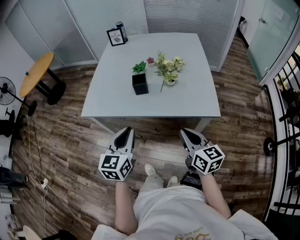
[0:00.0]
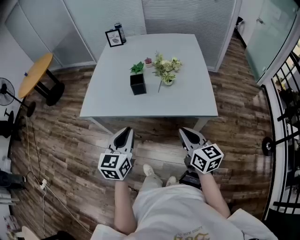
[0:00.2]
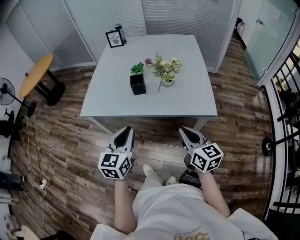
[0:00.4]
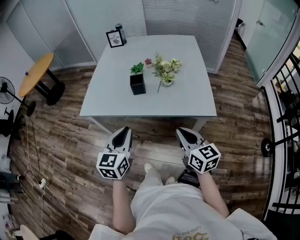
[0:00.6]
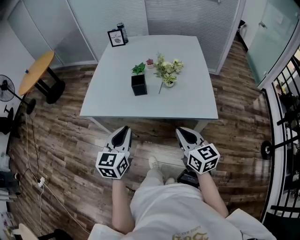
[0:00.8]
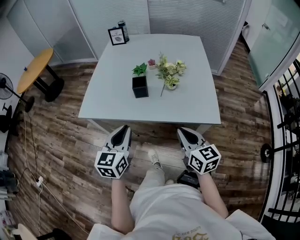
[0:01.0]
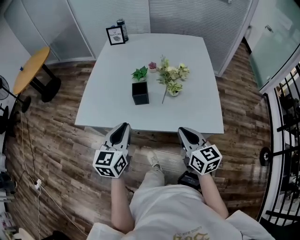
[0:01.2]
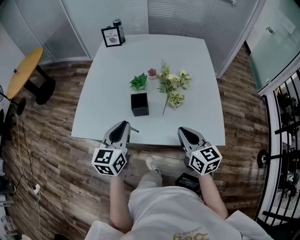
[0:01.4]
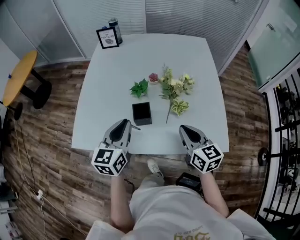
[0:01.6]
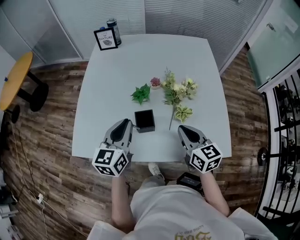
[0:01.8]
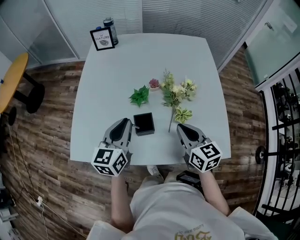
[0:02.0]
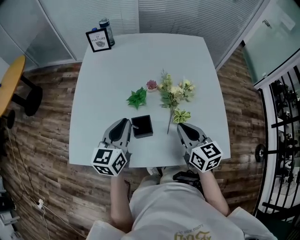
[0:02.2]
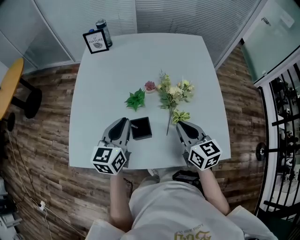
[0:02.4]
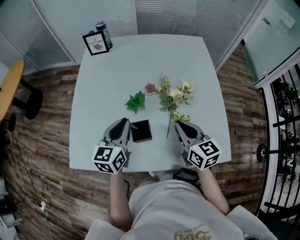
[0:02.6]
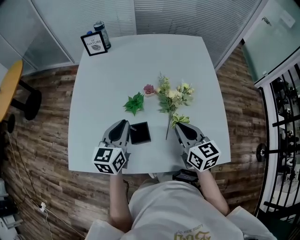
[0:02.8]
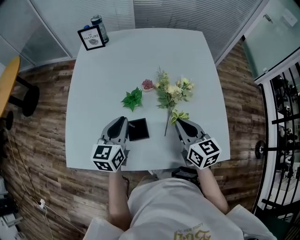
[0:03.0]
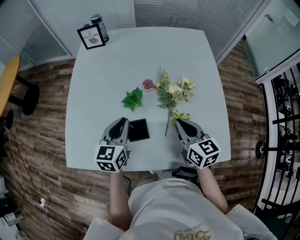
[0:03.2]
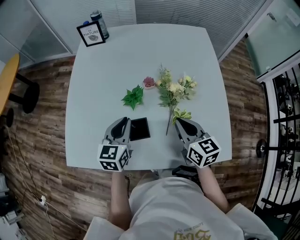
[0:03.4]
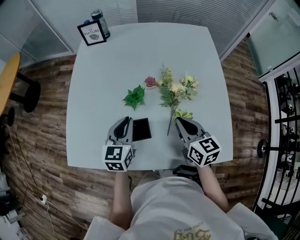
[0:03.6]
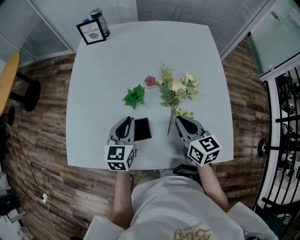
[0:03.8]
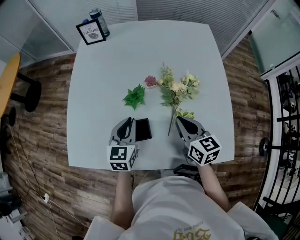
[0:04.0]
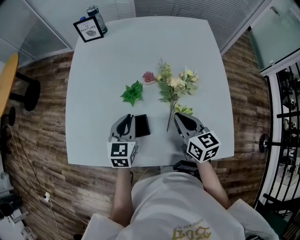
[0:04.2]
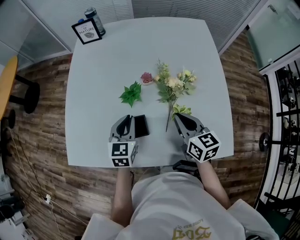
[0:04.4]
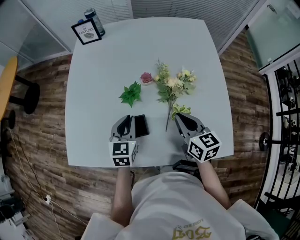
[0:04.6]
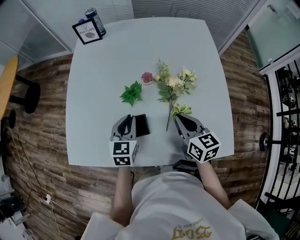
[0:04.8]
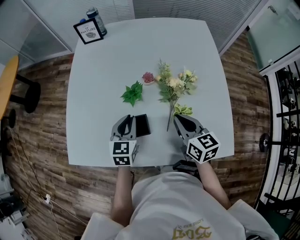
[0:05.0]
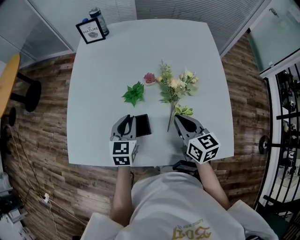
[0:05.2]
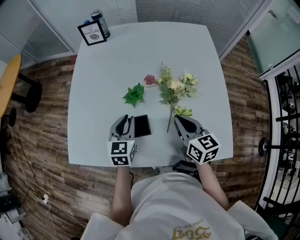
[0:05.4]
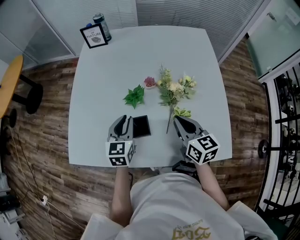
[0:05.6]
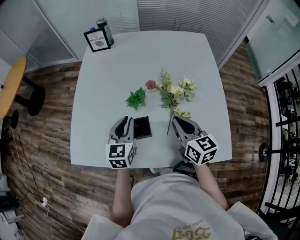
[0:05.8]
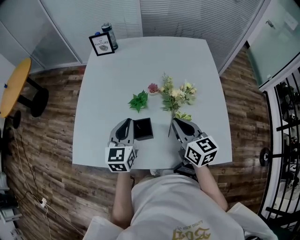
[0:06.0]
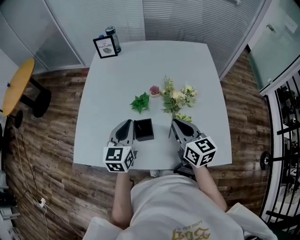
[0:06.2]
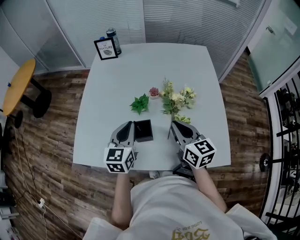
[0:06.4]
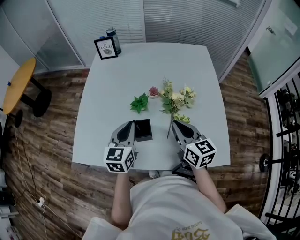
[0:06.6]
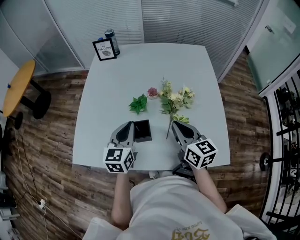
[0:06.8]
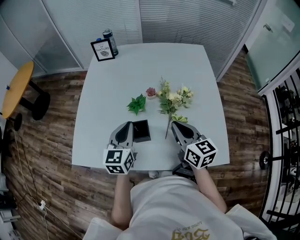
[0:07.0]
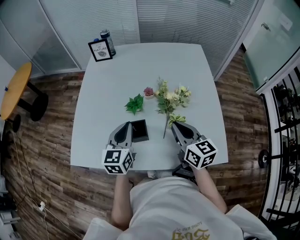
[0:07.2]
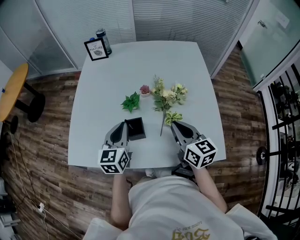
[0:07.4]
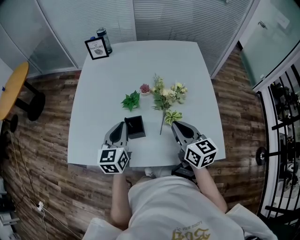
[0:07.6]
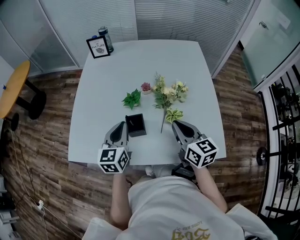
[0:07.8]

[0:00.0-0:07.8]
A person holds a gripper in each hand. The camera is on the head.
0.0 to 1.6 s: Both grippers travel together forward, approximately 30 cm.
1.6 to 3.2 s: The left gripper travels forward and downward by approximately 15 cm. Meanwhile the right gripper heads forward, covering some 10 cm.
3.2 to 4.6 s: The left gripper shifts some 5 cm downward.
4.6 to 6.2 s: The grippers both shift upward by some 10 cm.
6.2 to 7.8 s: The right gripper changes place by about 5 cm.

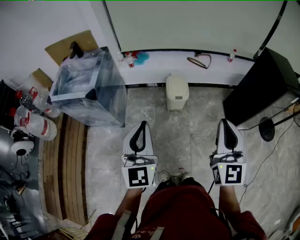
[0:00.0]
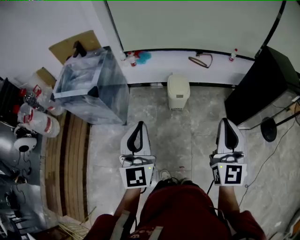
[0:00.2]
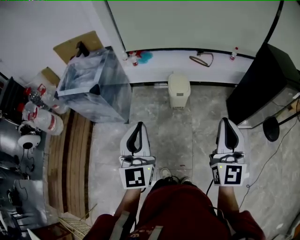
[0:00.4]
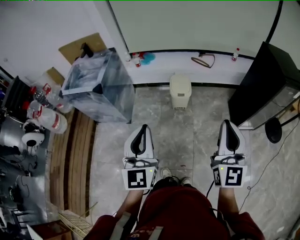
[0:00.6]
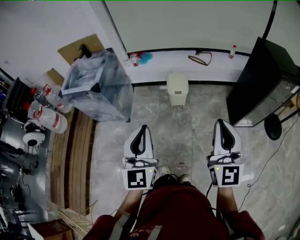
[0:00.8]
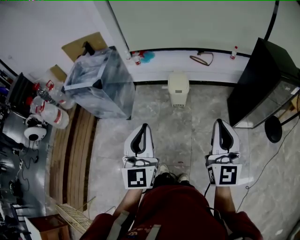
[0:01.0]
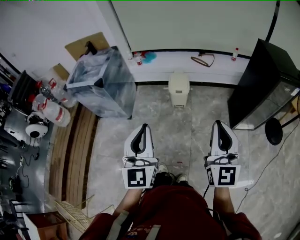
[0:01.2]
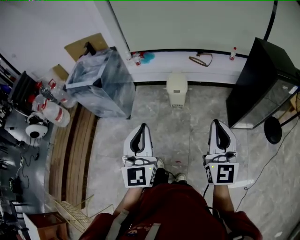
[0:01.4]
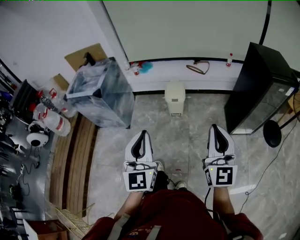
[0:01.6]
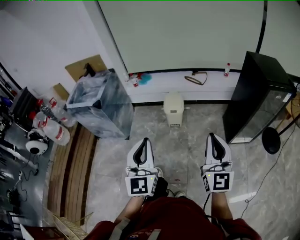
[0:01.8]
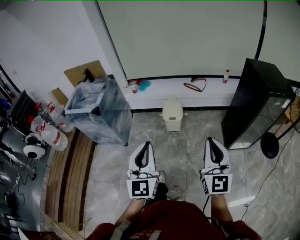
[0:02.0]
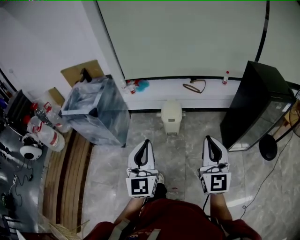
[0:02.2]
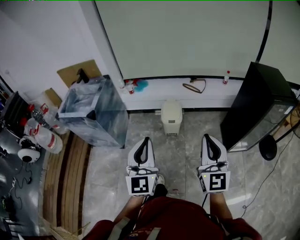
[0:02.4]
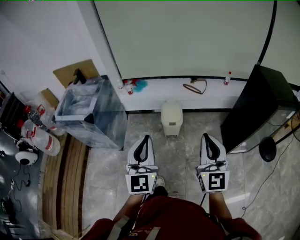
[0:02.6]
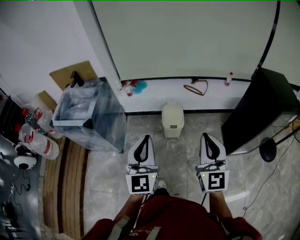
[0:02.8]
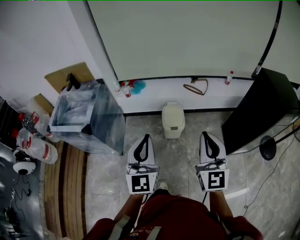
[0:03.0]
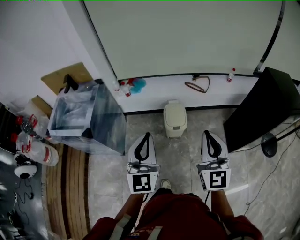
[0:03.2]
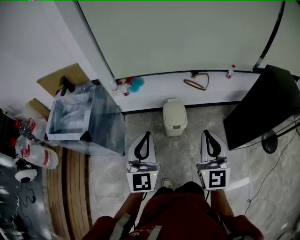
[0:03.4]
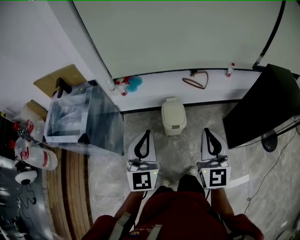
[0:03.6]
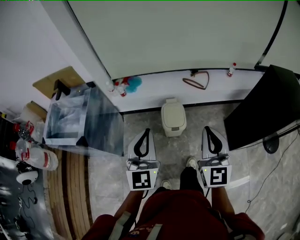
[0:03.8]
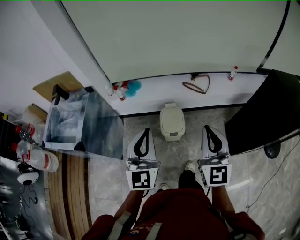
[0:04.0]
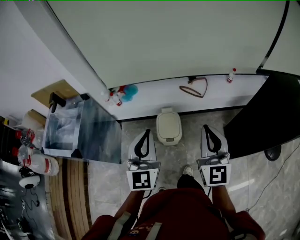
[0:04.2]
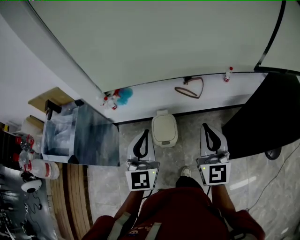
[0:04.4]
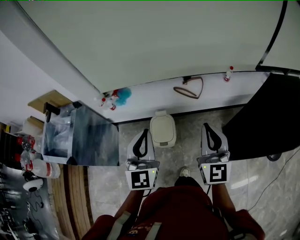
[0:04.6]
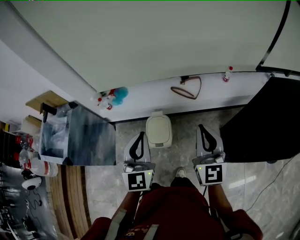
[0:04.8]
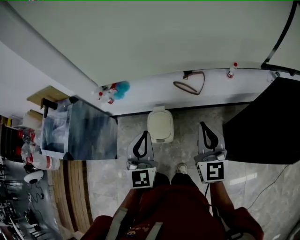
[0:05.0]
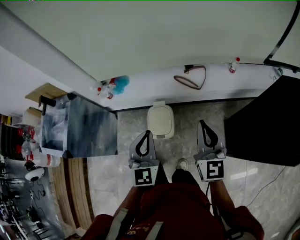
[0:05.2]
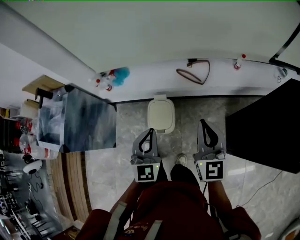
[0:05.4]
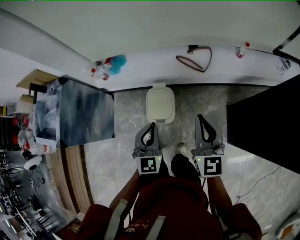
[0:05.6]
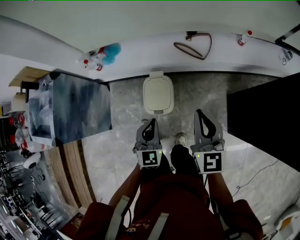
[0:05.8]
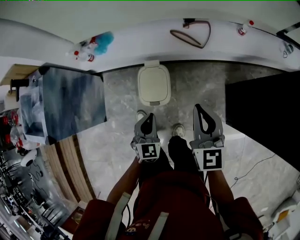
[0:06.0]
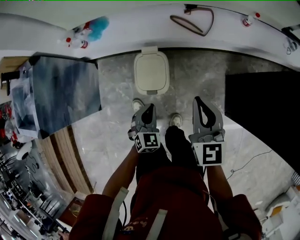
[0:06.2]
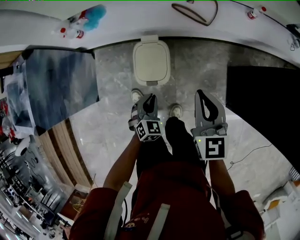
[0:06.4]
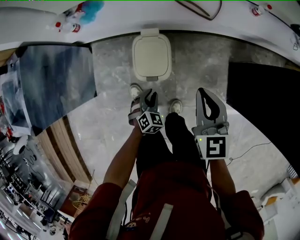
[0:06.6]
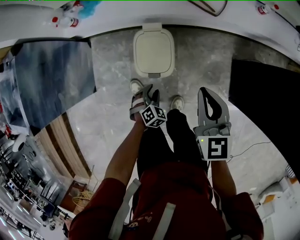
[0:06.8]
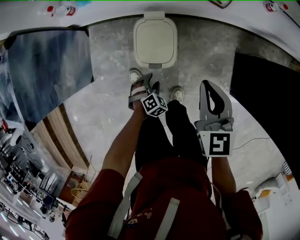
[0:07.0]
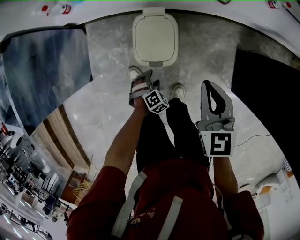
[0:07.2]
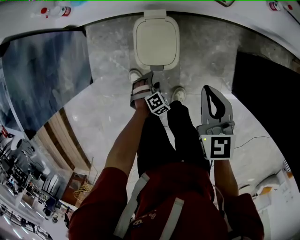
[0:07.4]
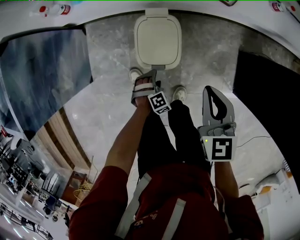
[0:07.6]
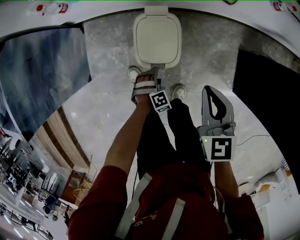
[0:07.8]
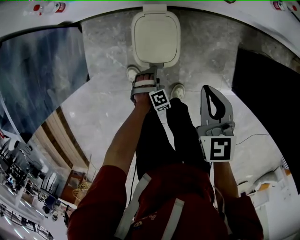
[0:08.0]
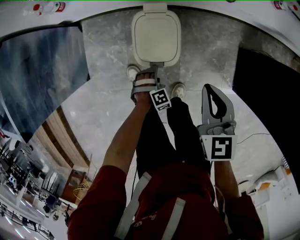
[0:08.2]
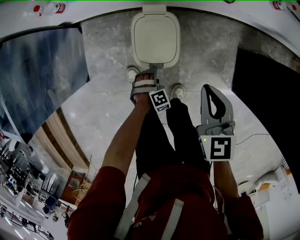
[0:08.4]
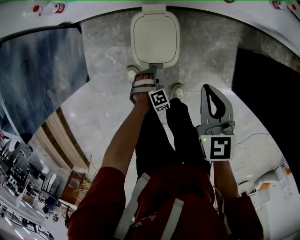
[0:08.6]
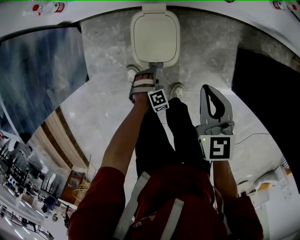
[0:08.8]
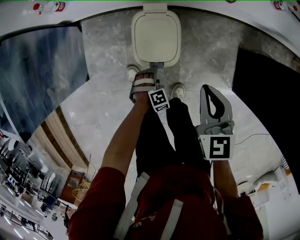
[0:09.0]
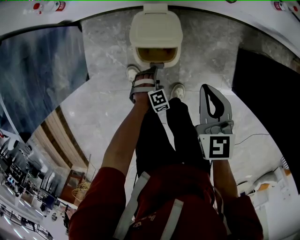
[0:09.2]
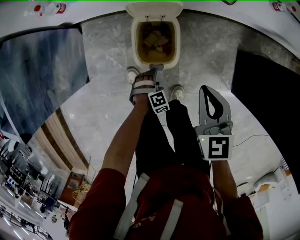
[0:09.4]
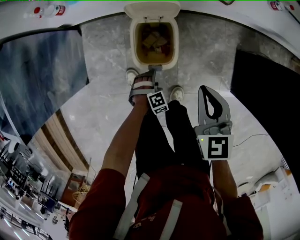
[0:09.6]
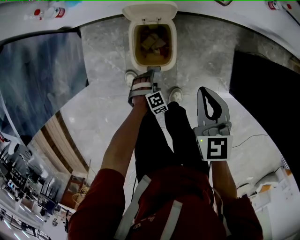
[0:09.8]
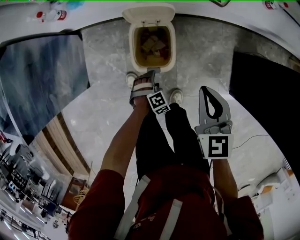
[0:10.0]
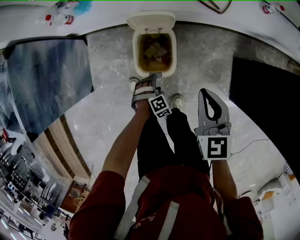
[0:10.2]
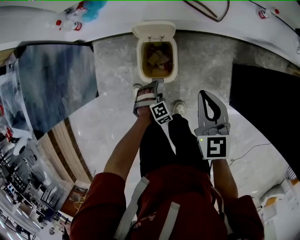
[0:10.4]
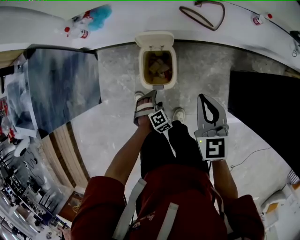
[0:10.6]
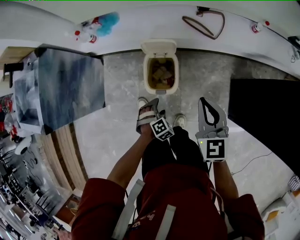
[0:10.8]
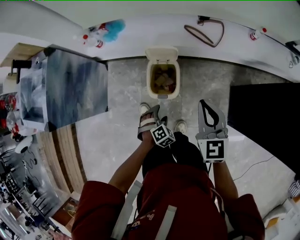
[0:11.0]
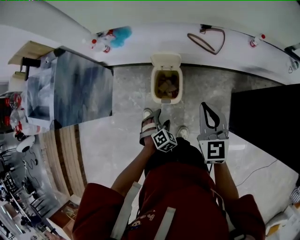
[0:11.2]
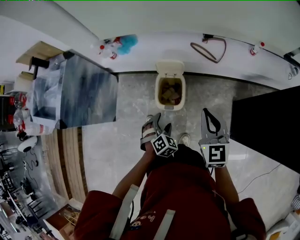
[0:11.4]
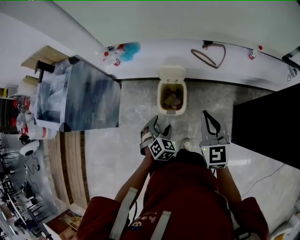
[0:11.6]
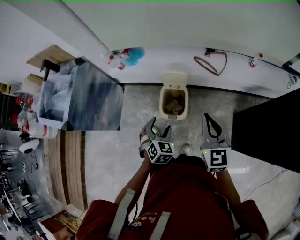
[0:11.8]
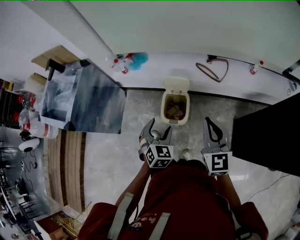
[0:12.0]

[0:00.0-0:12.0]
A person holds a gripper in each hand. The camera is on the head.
0.0 to 1.6 s: Both grippers travel together backward and to the right, approximately 20 cm.
1.6 to 3.0 s: The right gripper goes some 30 cm forward and to the left. The left gripper goes about 30 cm forward.
3.0 to 4.4 s: Both grippers travel together forward and to the right, roughly 30 cm.
4.4 to 6.0 s: The left gripper heads downward, covering roughly 35 cm, and angles its fingers downward, by roughly 30 degrees; the right gripper goes about 25 cm downward and forward, and changes its angle by approximately 20 degrees.
6.0 to 7.6 s: The right gripper moves downward, about 20 cm. Meanwhile the left gripper moves downward, some 35 cm, points its fingers approximately 40 degrees further downward, and opens.
7.6 to 9.0 s: The grippers make only small movements.
9.0 to 10.4 s: The grippers both shift upward by some 10 cm.
10.4 to 12.0 s: The left gripper heads upward, covering approximately 35 cm, and angles its fingers upward, by some 30 degrees. Meanwhile the right gripper moves upward, some 20 cm.

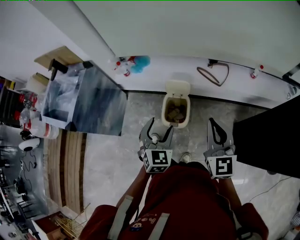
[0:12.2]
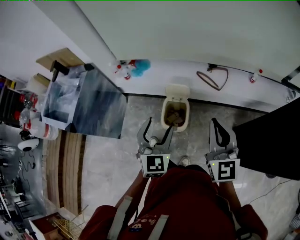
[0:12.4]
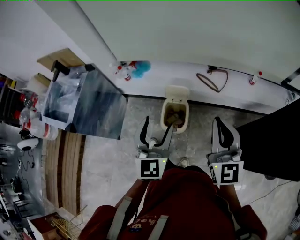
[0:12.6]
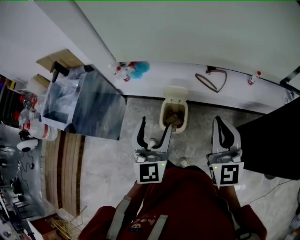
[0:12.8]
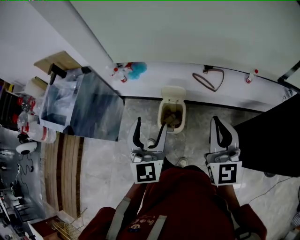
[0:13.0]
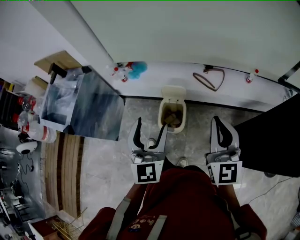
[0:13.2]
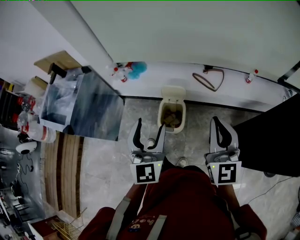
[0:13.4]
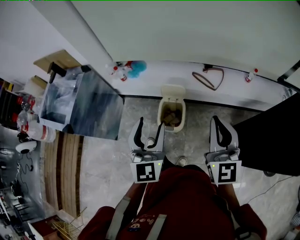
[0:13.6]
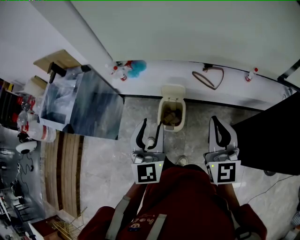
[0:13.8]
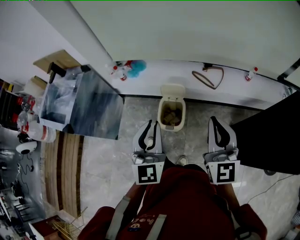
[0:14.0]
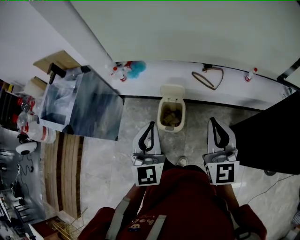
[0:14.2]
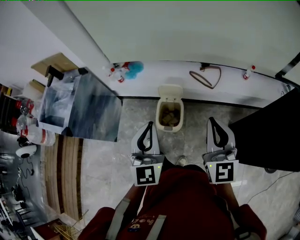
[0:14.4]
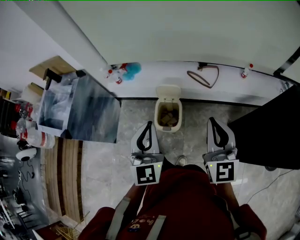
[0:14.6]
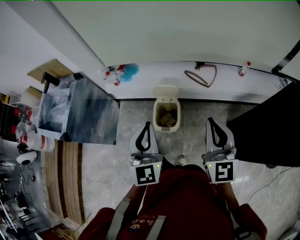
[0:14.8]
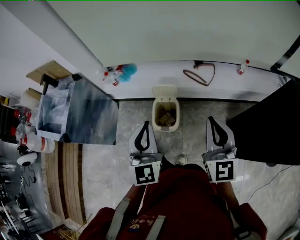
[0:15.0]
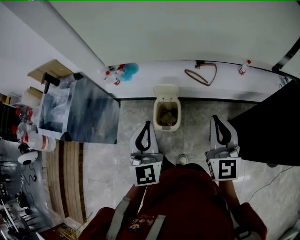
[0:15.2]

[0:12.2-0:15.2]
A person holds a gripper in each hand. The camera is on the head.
12.2 to 13.8 s: The left gripper moves upward, roughly 15 cm, swivels some 30 degrees, and closes its fingers; the right gripper is displaced upward by about 10 cm.
13.8 to 15.2 s: The left gripper closes its fingers.

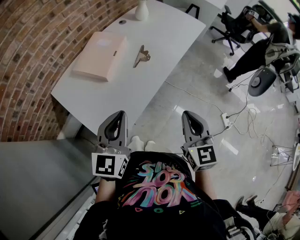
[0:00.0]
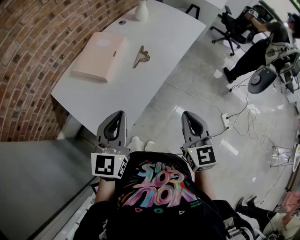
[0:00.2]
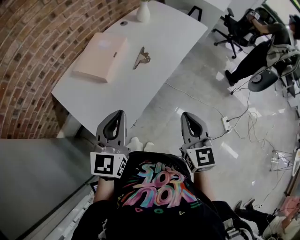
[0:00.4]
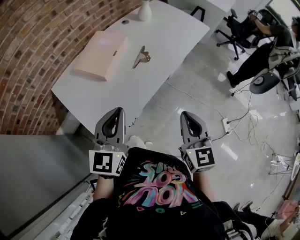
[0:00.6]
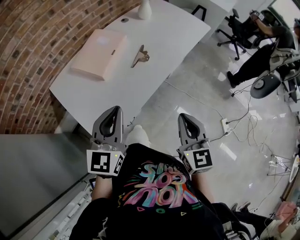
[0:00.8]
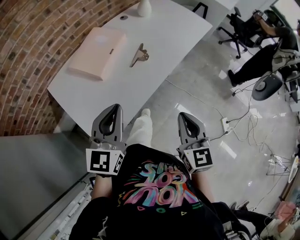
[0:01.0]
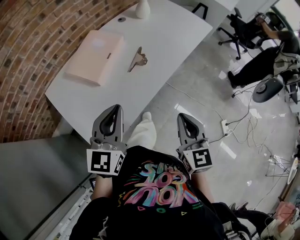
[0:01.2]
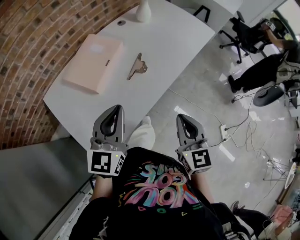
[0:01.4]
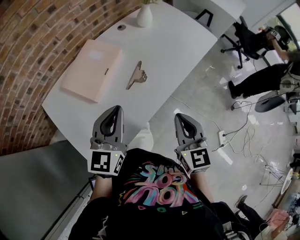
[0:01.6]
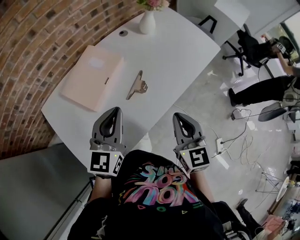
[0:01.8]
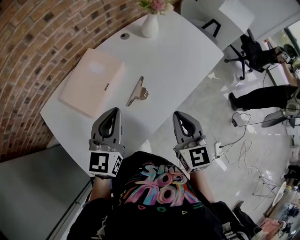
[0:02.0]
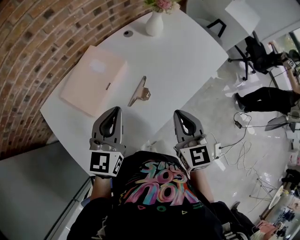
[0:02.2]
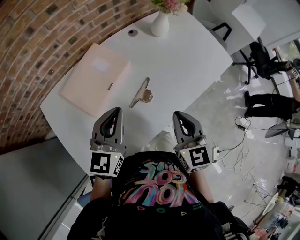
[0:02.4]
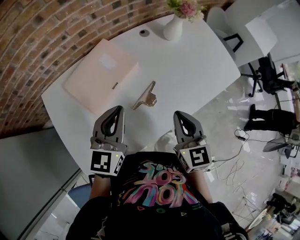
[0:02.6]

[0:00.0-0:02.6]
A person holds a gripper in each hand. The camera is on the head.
0.0 to 1.2 s: The grippers both shift forward by about 10 cm.
1.2 to 2.6 s: Both grippers move forward, roughly 30 cm. The right gripper rotates some 20 degrees.
